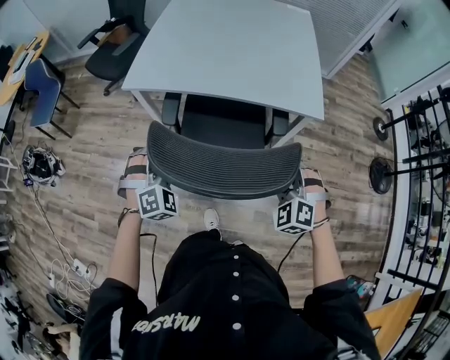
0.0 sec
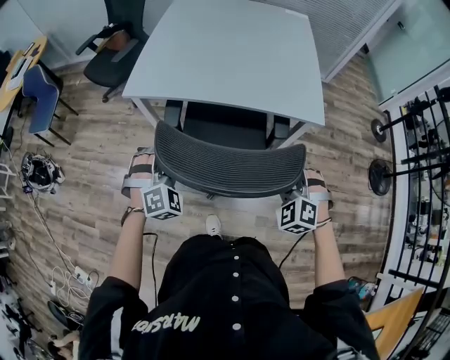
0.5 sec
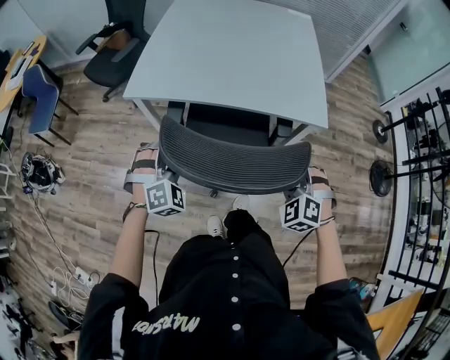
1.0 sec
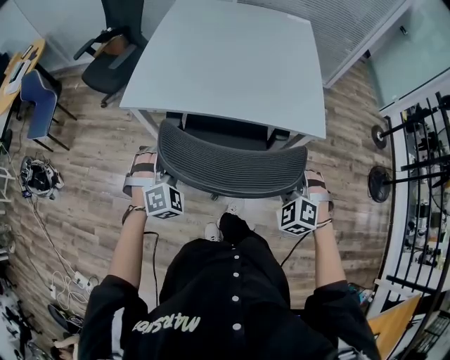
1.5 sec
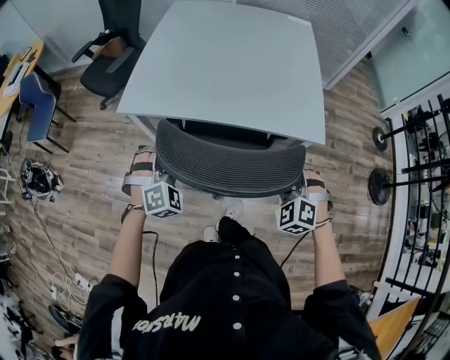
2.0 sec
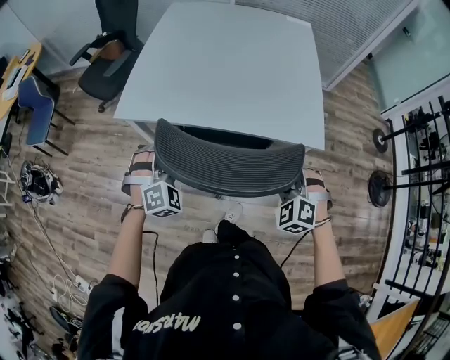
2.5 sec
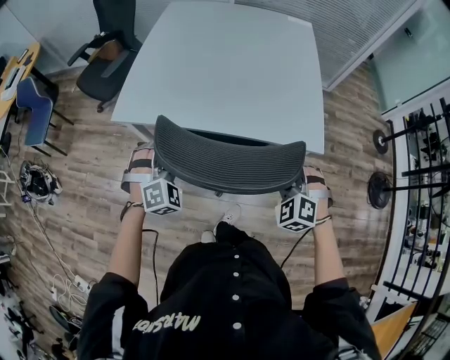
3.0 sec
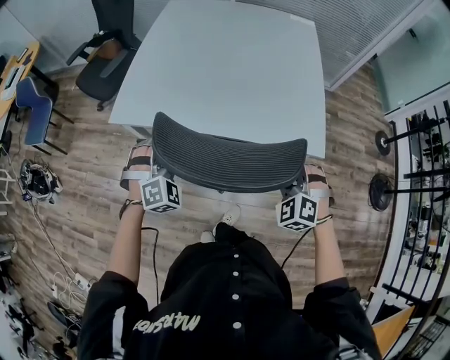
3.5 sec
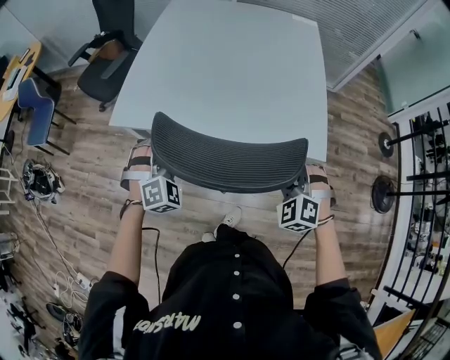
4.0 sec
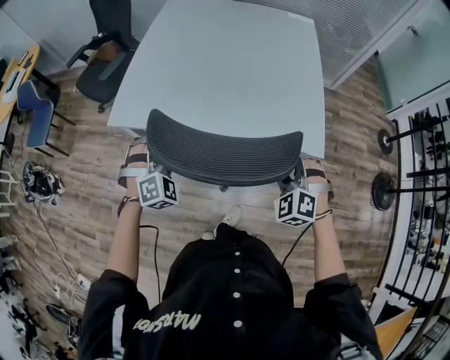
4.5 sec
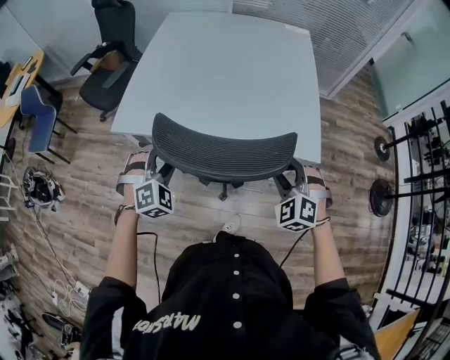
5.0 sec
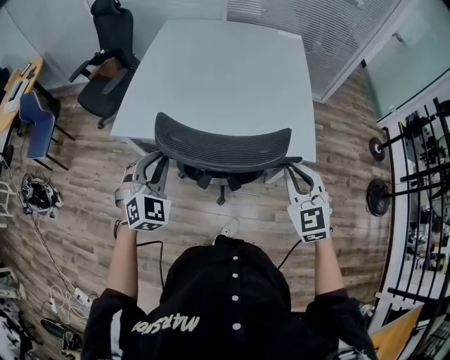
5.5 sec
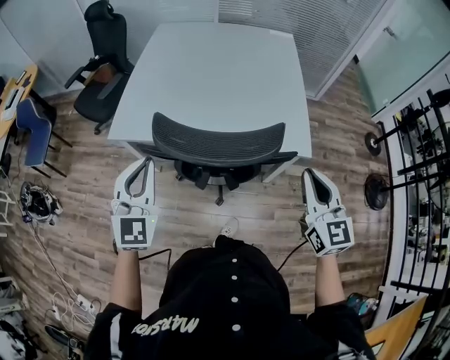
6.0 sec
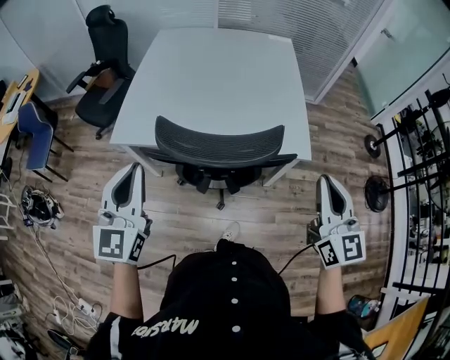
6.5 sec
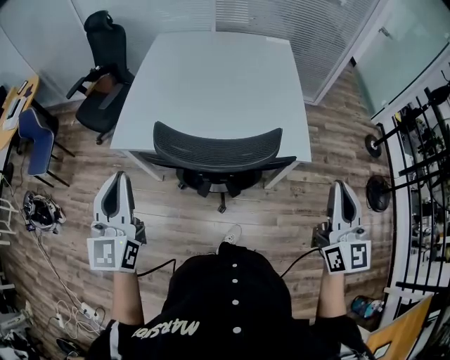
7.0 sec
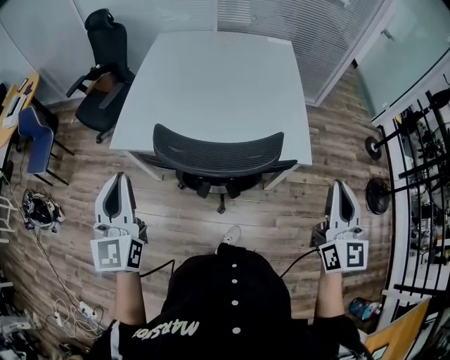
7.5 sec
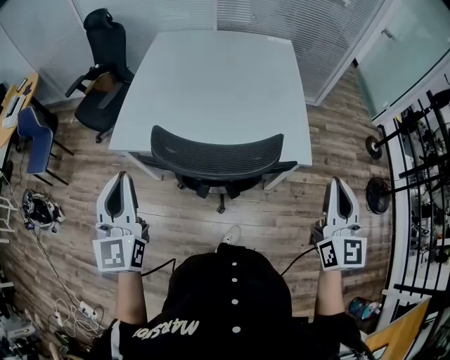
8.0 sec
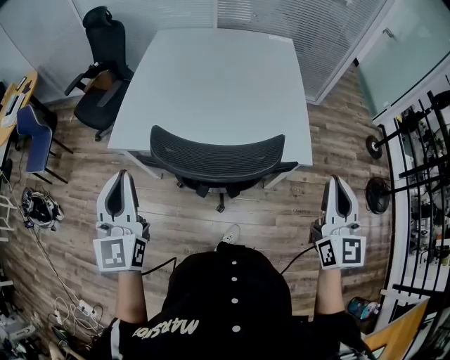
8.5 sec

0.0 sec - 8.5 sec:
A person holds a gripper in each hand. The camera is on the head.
0.0 sec - 2.0 sec: Both grippers travel together forward, roughly 10 cm.
2.0 sec - 4.0 sec: Both grippers travel together forward, approximately 10 cm.
4.0 sec - 6.5 sec: Both grippers move upward and backward, some 25 cm. The left gripper rotates around the line of its fingers by about 50 degrees, counterclockwise from behind, and closes its fingers; the right gripper rolls clockwise, seen from behind, by approximately 60 degrees, and closes its fingers.
6.5 sec - 8.5 sec: The grippers make only small movements.

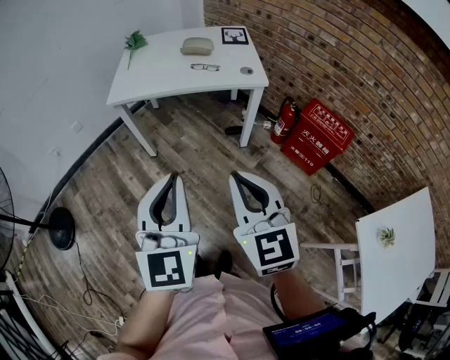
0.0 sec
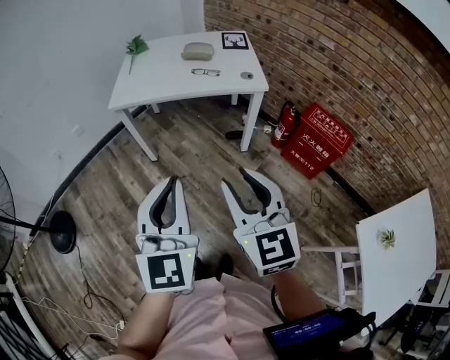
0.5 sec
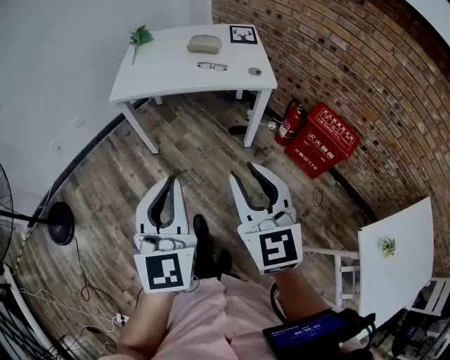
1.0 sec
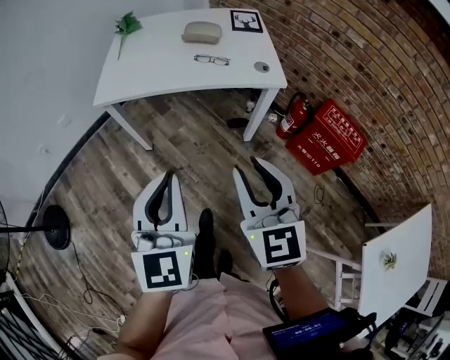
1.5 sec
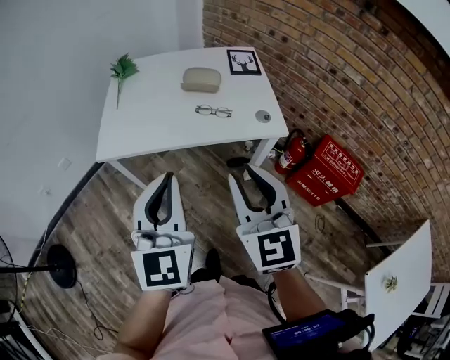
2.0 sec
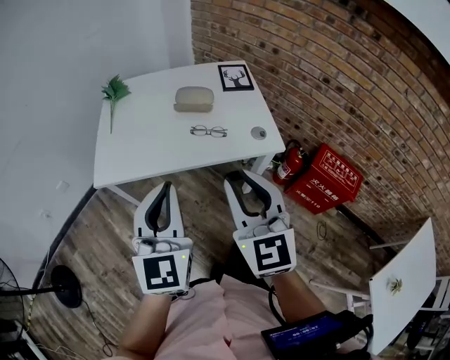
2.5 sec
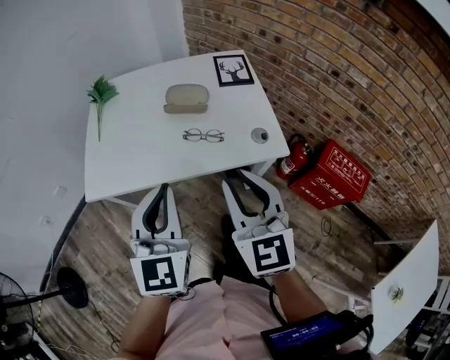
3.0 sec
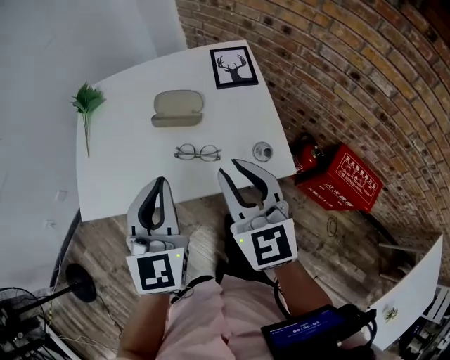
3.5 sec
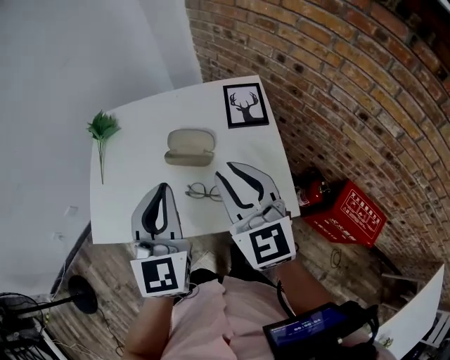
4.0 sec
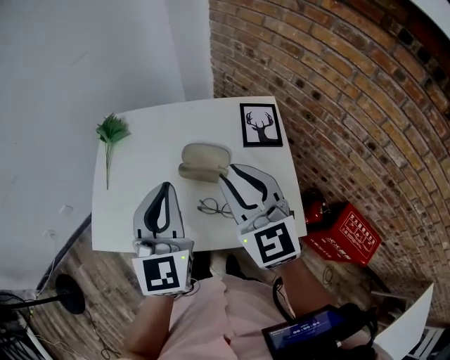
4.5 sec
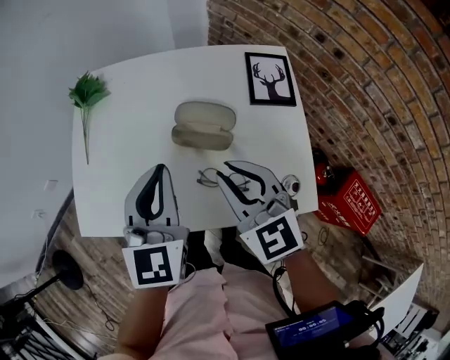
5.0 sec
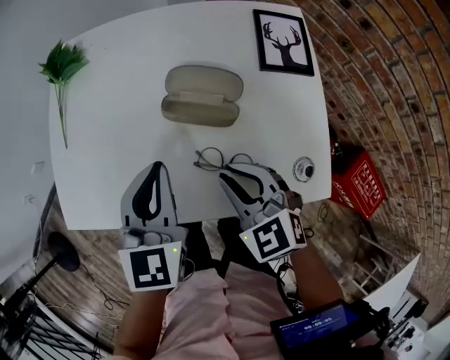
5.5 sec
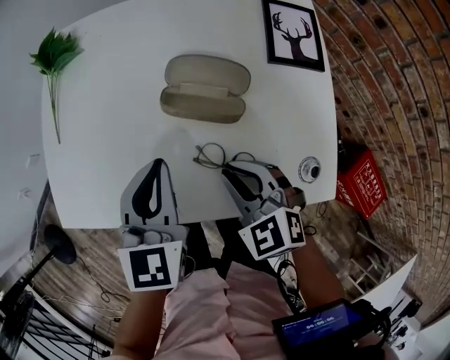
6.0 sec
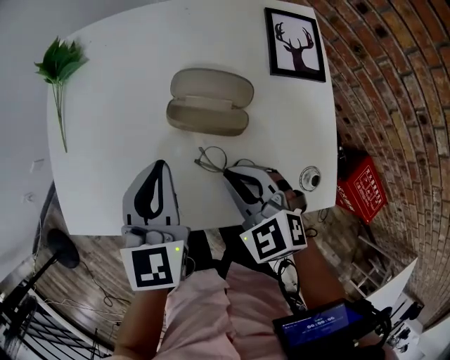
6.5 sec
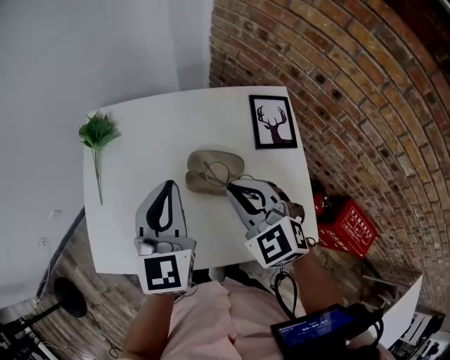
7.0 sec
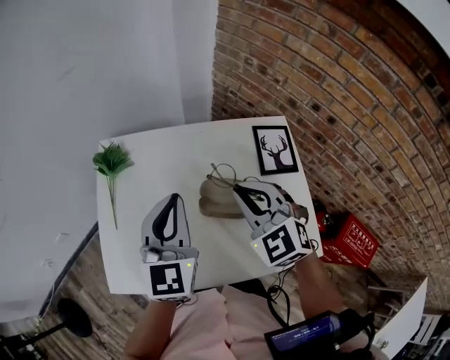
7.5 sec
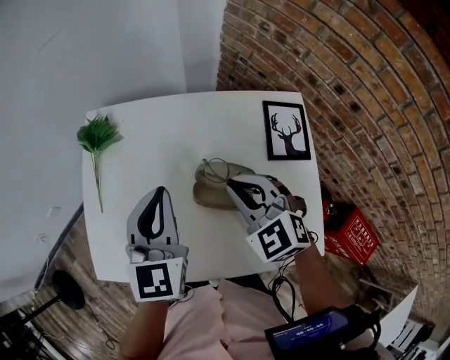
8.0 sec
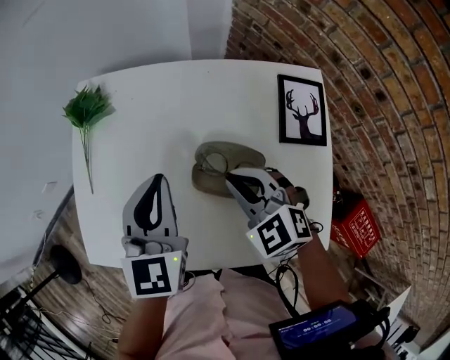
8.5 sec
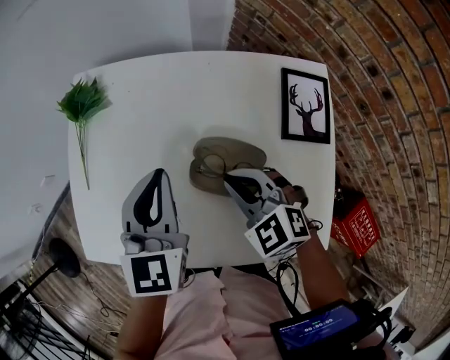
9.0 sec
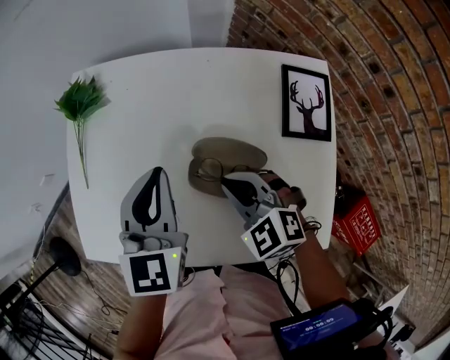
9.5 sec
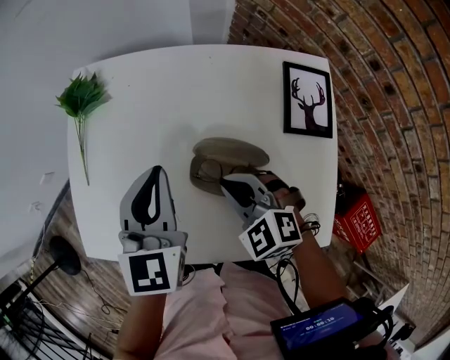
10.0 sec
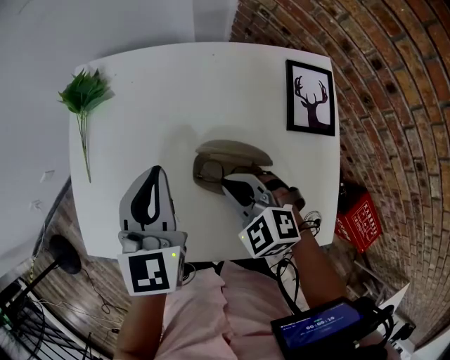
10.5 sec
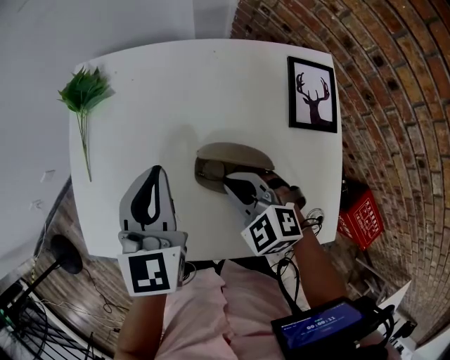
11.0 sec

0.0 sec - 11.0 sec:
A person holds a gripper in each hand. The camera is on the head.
0.0 sec - 2.0 sec: Both grippers travel together forward, roughly 30 cm. The right gripper opens up.
2.0 sec - 3.5 sec: The two grippers go approximately 25 cm forward.
3.5 sec - 5.5 sec: The left gripper goes about 20 cm forward and downward. Meanwhile the right gripper is displaced downward, forward and to the left by approximately 20 cm, and swivels roughly 40 degrees.
5.5 sec - 7.5 sec: The two grippers go roughly 20 cm upward and forward.
7.5 sec - 9.0 sec: Both grippers travel together downward, approximately 15 cm. The right gripper swivels roughly 20 degrees.
9.0 sec - 11.0 sec: The right gripper changes place by roughly 5 cm.

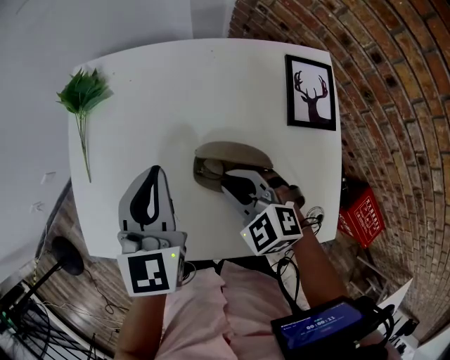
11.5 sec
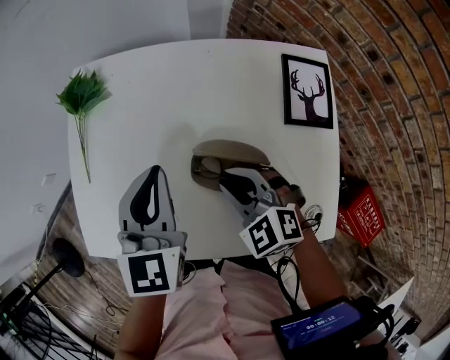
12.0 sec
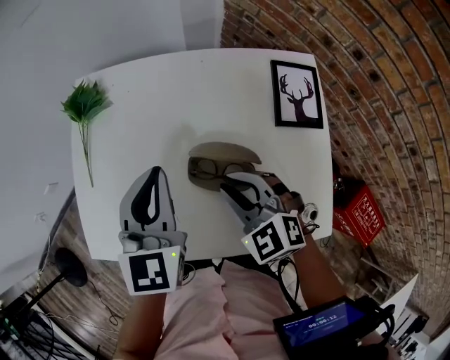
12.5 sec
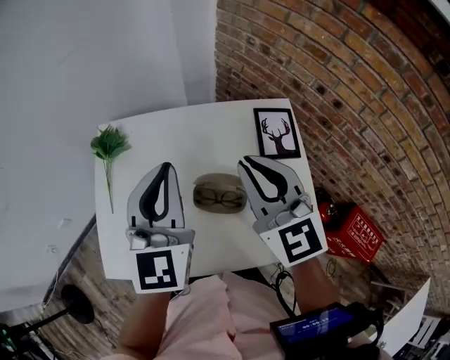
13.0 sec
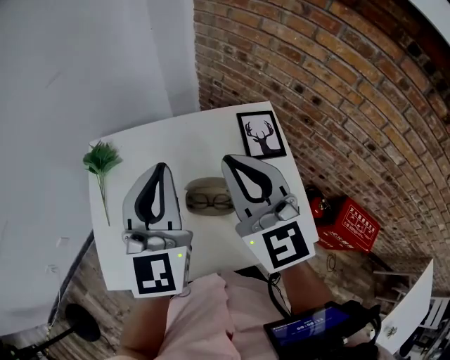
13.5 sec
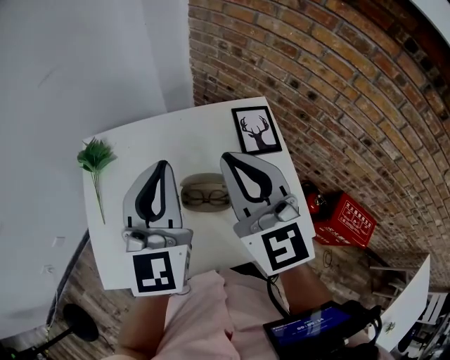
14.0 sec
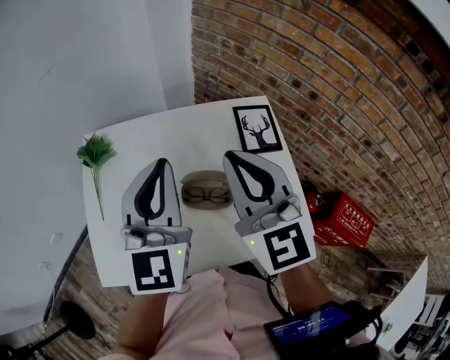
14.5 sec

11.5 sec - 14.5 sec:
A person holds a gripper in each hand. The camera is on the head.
11.5 sec - 13.0 sec: The right gripper moves upward, about 25 cm, and points its fingers roughly 40 degrees further upward, while the left gripper is displaced upward by about 15 cm, and swivels some 20 degrees.
13.0 sec - 14.5 sec: The grippers move only a little.

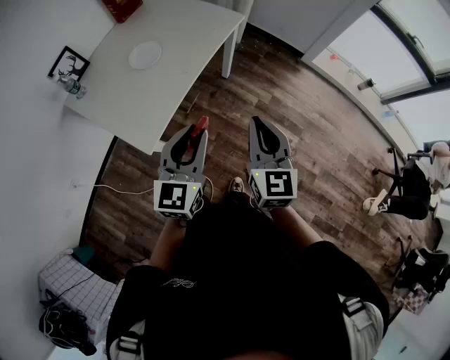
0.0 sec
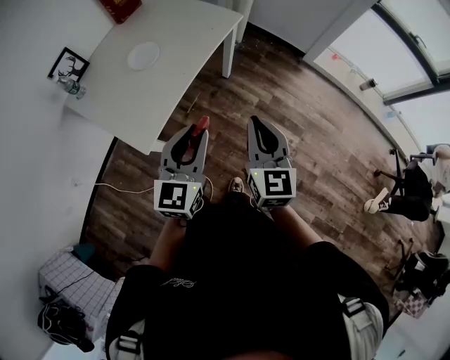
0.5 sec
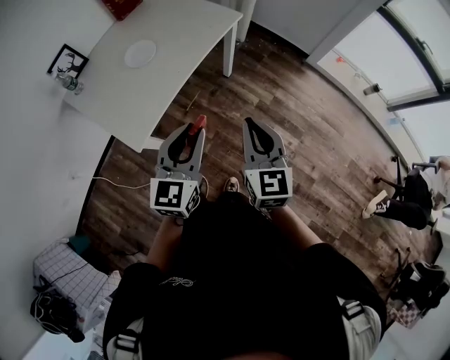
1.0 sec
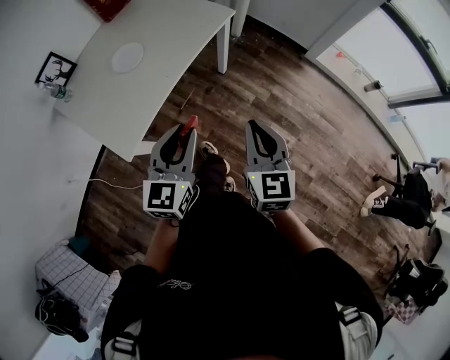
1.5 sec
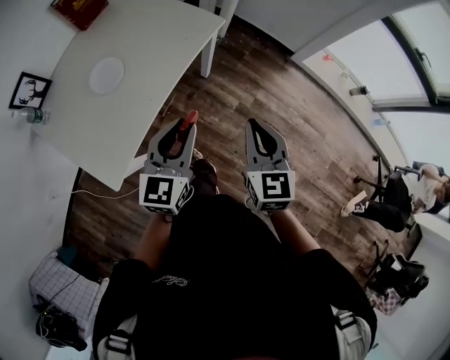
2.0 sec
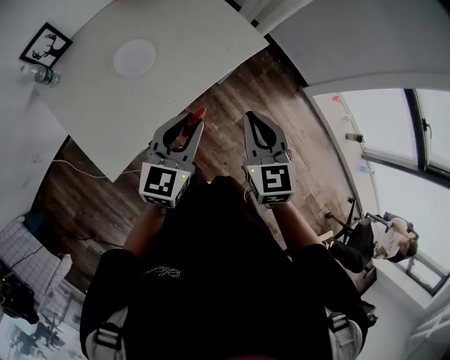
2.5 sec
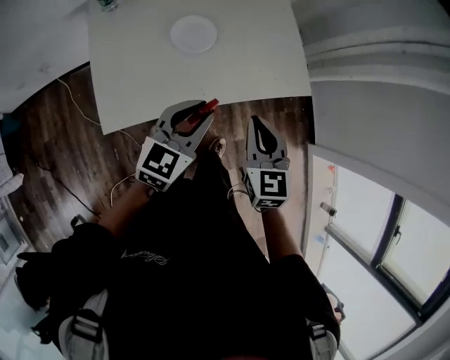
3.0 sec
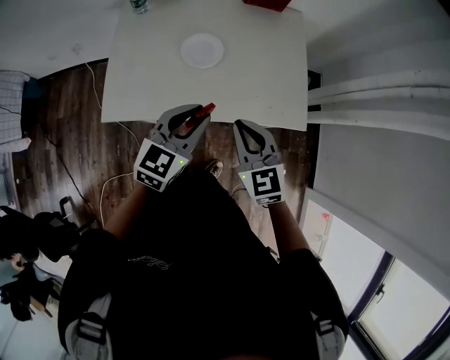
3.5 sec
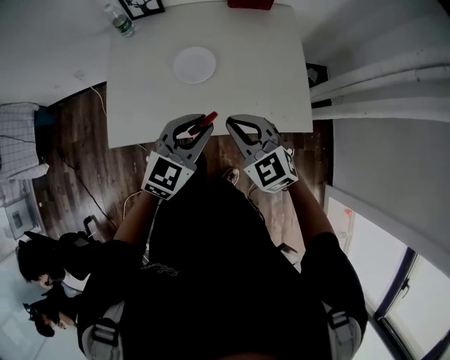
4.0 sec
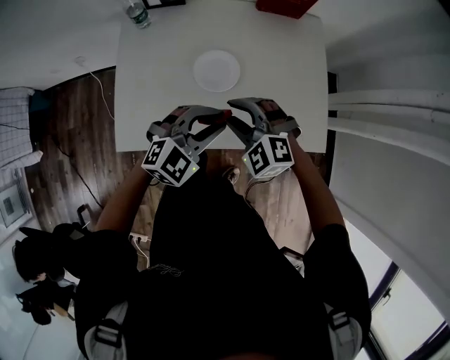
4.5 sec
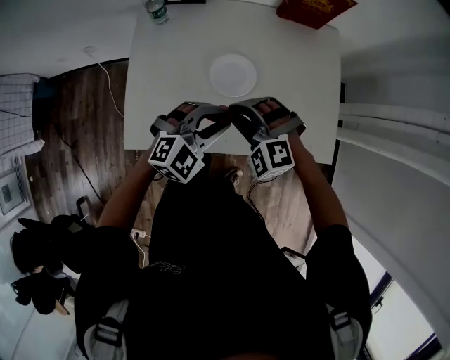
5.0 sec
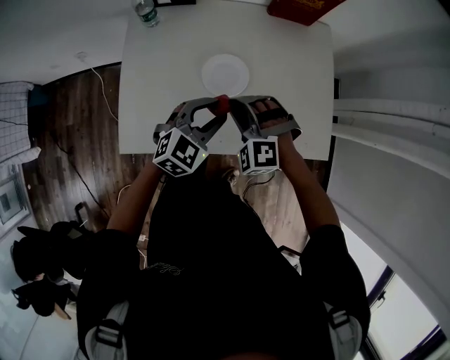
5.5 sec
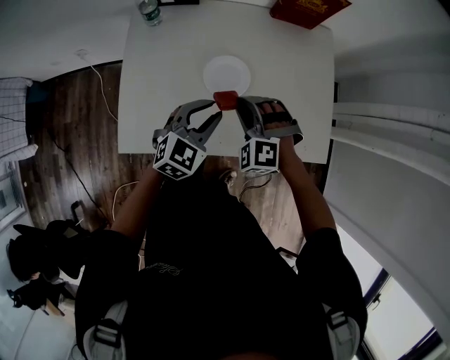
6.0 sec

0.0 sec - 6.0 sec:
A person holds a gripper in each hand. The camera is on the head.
0.0 sec - 2.0 sec: The right gripper heads forward and to the right, covering about 20 cm, while the left gripper shifts about 20 cm forward.
2.0 sec - 4.0 sec: The right gripper ends up some 30 cm from where it was, and swivels roughly 90 degrees, while the left gripper ends up about 20 cm from where it was, and swivels about 30 degrees.
4.0 sec - 6.0 sec: The right gripper is displaced forward, downward and to the left by approximately 20 cm, and rotates around the line of its fingers by approximately 40 degrees, counterclockwise from behind. The left gripper travels forward, to the left and downward by some 15 cm.
